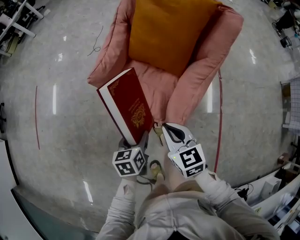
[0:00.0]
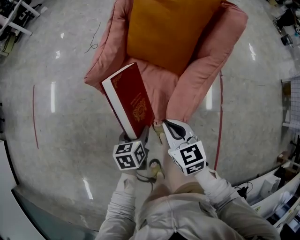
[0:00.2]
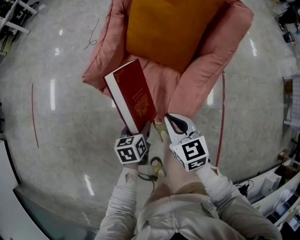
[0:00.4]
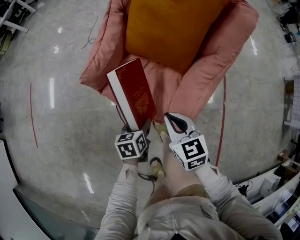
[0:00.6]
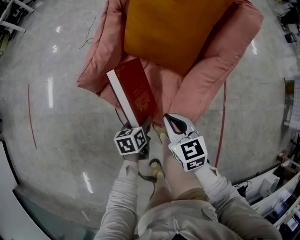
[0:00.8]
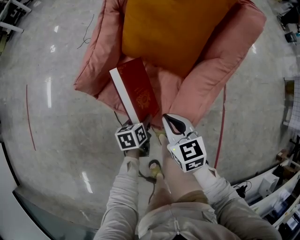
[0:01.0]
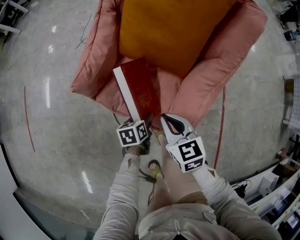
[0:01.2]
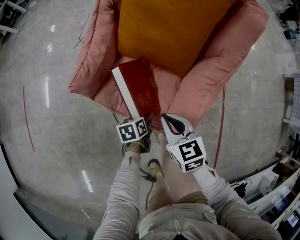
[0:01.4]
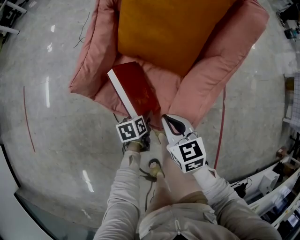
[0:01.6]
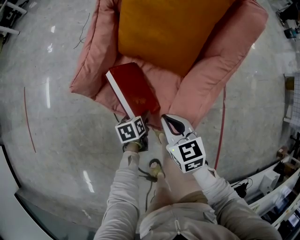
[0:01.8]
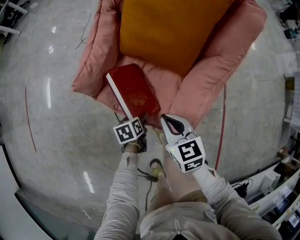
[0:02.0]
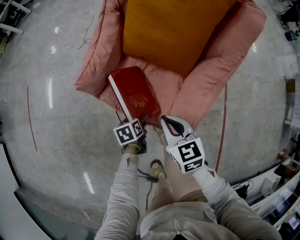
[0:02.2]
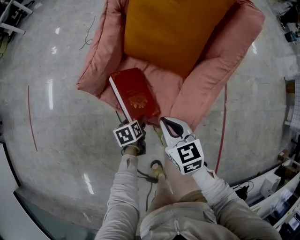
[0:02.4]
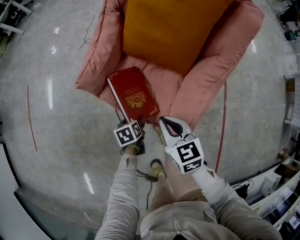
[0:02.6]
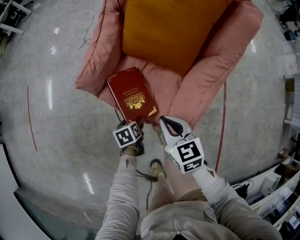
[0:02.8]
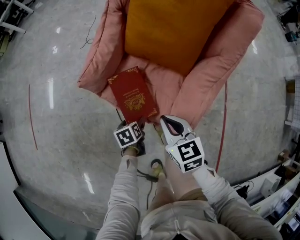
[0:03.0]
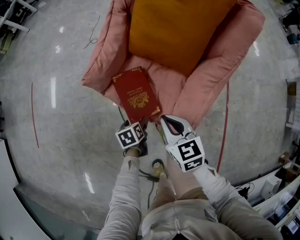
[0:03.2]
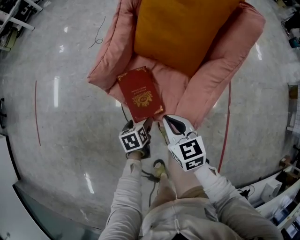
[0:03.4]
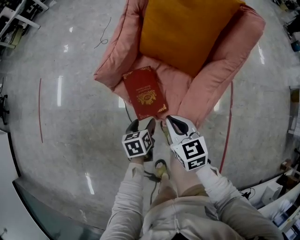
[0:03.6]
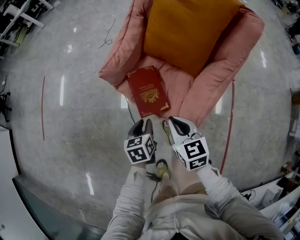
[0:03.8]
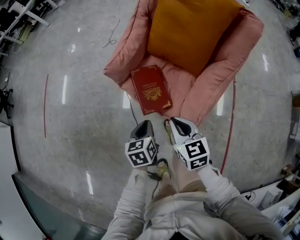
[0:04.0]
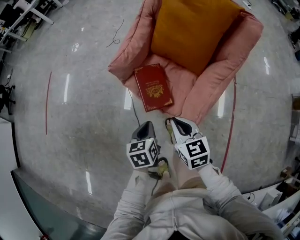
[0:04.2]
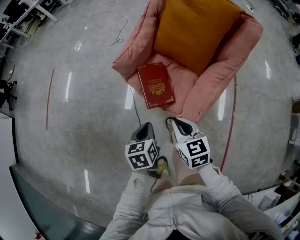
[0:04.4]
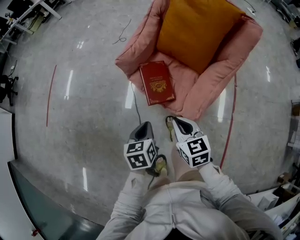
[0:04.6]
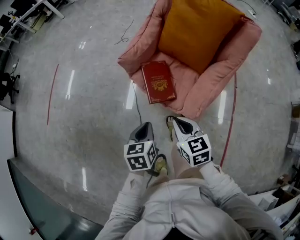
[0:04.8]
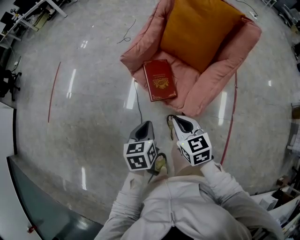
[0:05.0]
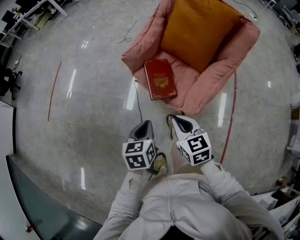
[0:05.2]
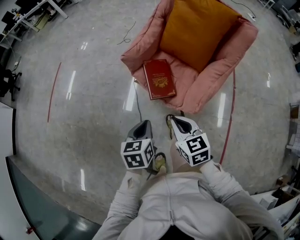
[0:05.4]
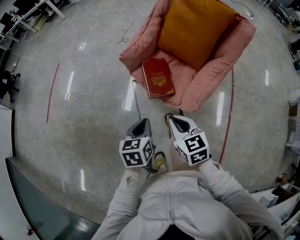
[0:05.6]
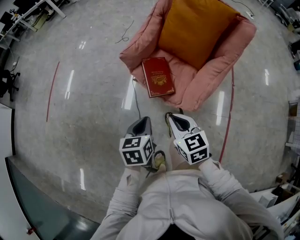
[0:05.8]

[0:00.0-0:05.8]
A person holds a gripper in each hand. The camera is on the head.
0:00.0 to 0:01.4: The right gripper heads downward and forward, covering approximately 15 cm, while the left gripper goes approximately 25 cm downward and forward, and turns by roughly 20 degrees.
0:01.4 to 0:02.8: The left gripper travels to the left by some 10 cm, and opens.
0:02.8 to 0:04.4: The right gripper shifts some 10 cm backward and upward. The left gripper is displaced upward and backward by some 25 cm, changes its angle by roughly 20 degrees, and closes its fingers.
0:04.4 to 0:05.8: The left gripper travels upward and backward by about 10 cm. The right gripper shifts some 5 cm backward.

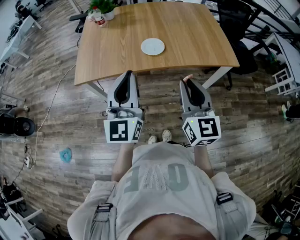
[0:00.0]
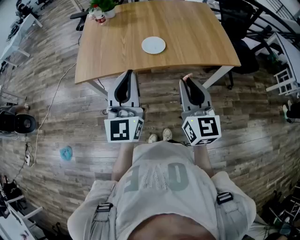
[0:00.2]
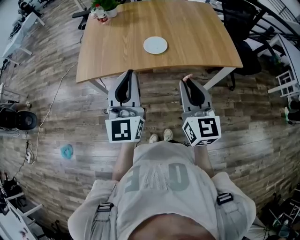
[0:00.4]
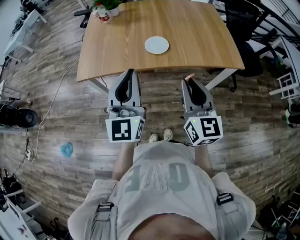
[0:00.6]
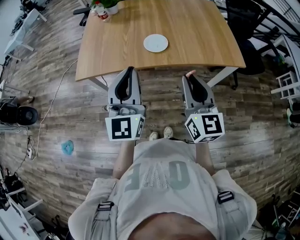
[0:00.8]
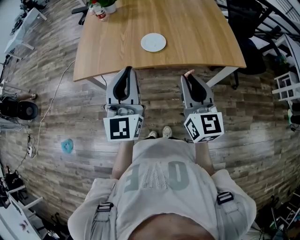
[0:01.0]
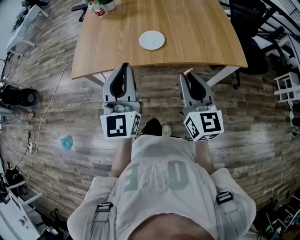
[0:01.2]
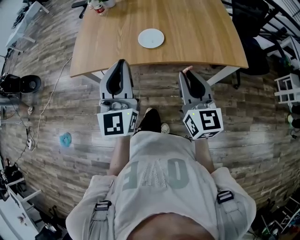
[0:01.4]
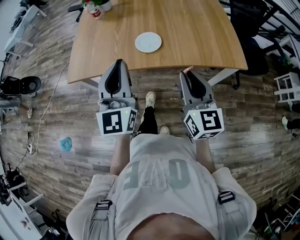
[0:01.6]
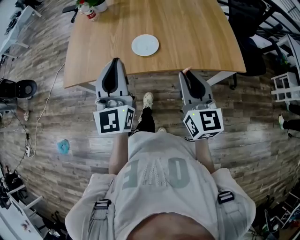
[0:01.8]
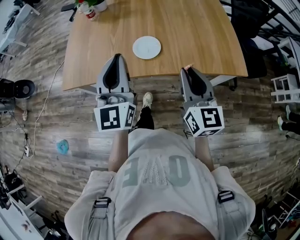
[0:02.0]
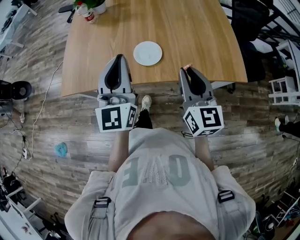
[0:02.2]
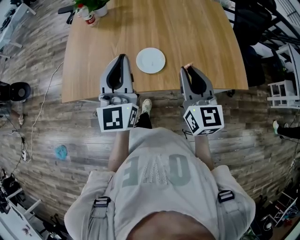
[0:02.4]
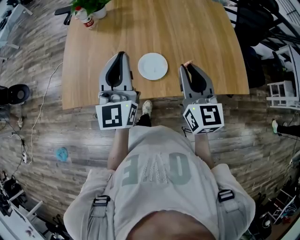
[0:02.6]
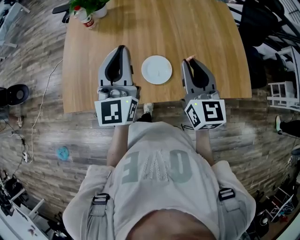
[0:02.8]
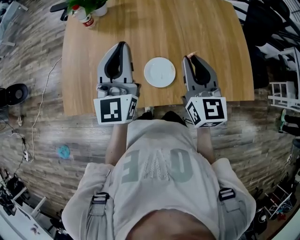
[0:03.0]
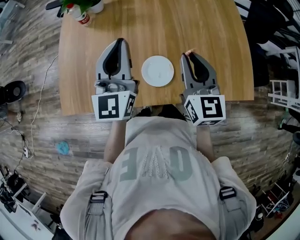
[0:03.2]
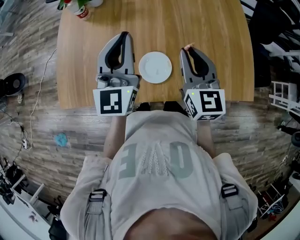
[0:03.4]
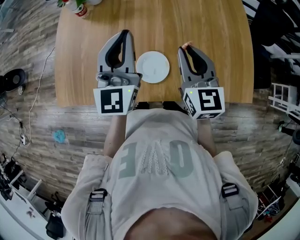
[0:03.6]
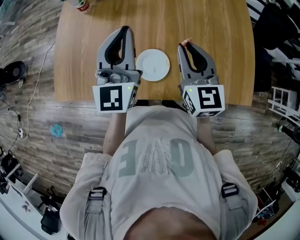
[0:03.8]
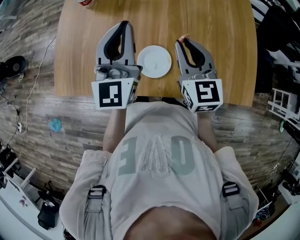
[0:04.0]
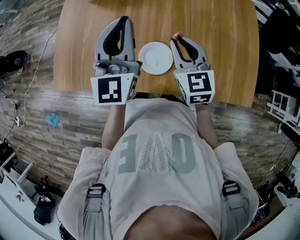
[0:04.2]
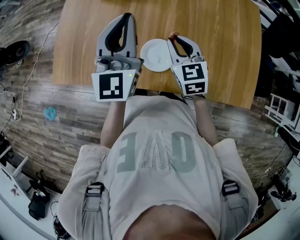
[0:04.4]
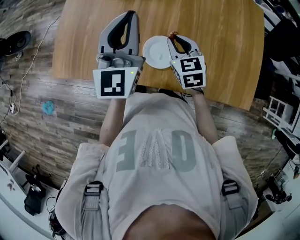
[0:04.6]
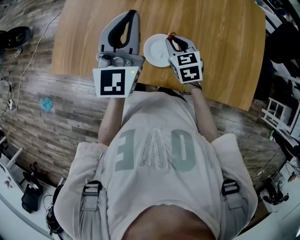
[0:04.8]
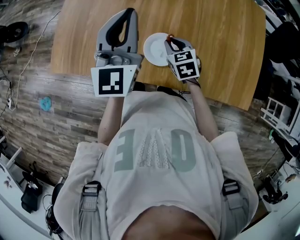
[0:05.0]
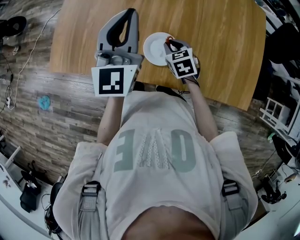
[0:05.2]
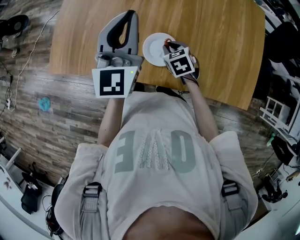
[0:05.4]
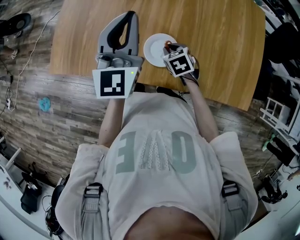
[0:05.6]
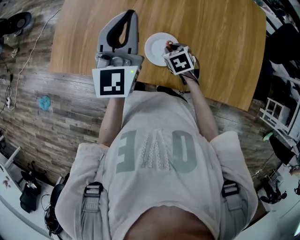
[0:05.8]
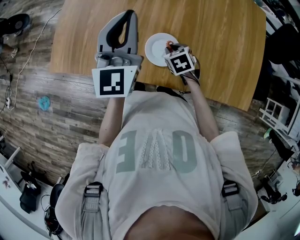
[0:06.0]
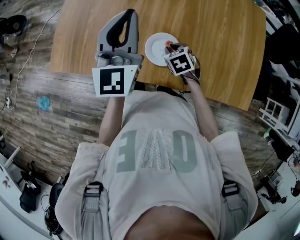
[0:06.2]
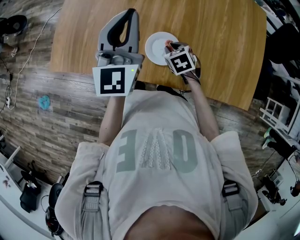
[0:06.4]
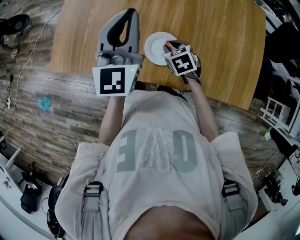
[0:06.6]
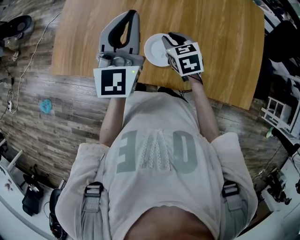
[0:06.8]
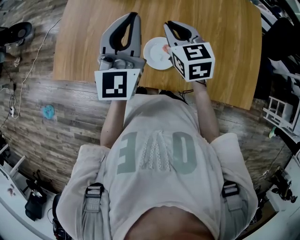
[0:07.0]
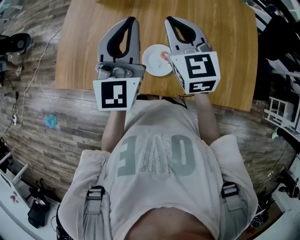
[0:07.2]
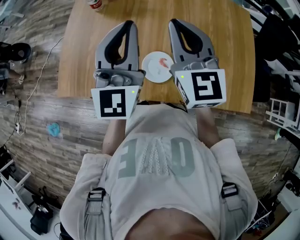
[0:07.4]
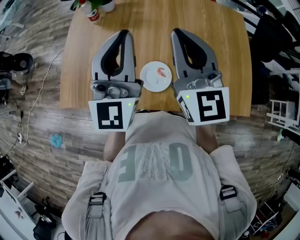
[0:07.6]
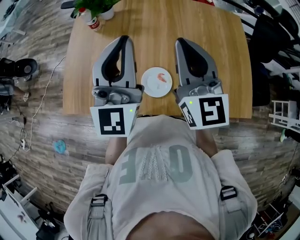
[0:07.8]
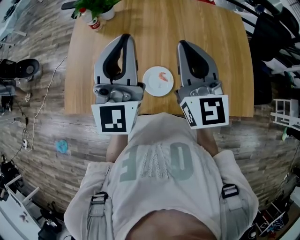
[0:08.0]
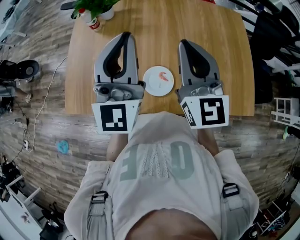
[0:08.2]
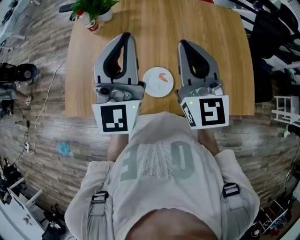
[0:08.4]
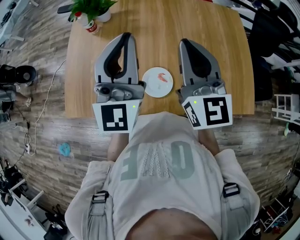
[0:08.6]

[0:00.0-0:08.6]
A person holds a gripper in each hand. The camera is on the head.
0:00.0 to 0:01.4: The left gripper shifts by roughly 5 cm; the right gripper heads forward and to the right, covering about 10 cm.
0:01.4 to 0:02.8: The two grippers go about 30 cm forward.
0:02.8 to 0:04.4: The left gripper goes about 5 cm forward, while the right gripper travels downward and forward by approximately 15 cm, and swivels roughly 30 degrees.
0:04.4 to 0:05.8: The right gripper goes approximately 15 cm downward, and angles its fingers downward, by some 30 degrees.
0:05.8 to 0:07.2: The right gripper is displaced upward by about 30 cm, and tips its fingers upward by about 50 degrees, while the left gripper heads upward, covering about 5 cm.
0:07.2 to 0:08.6: The left gripper travels upward by roughly 5 cm. The right gripper heads upward and to the right, covering about 10 cm, and swivels roughly 20 degrees.

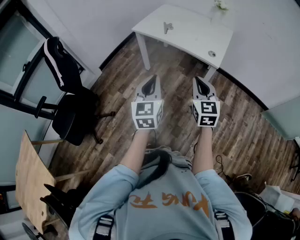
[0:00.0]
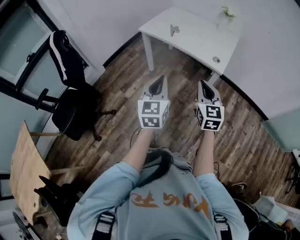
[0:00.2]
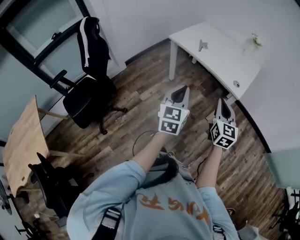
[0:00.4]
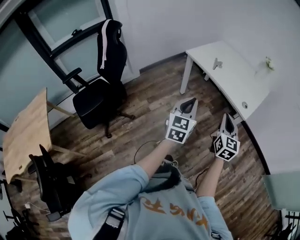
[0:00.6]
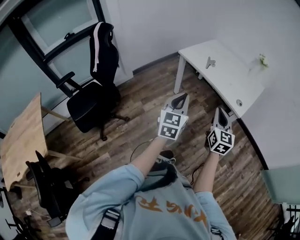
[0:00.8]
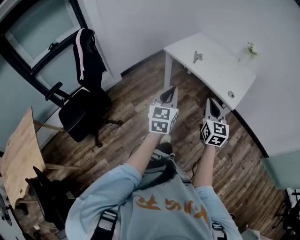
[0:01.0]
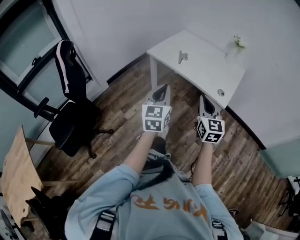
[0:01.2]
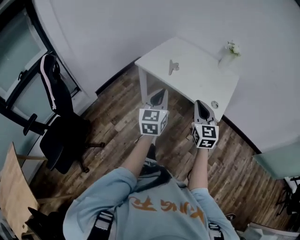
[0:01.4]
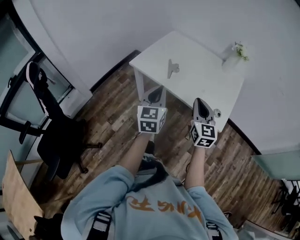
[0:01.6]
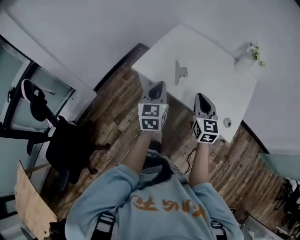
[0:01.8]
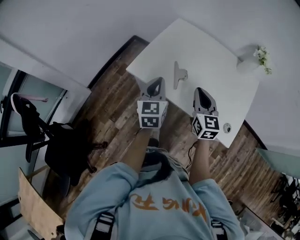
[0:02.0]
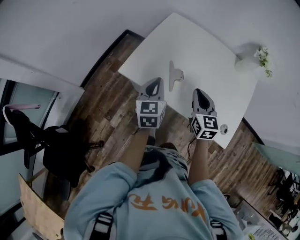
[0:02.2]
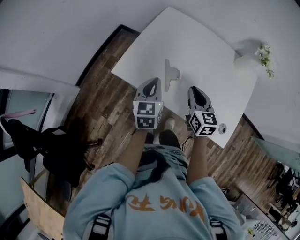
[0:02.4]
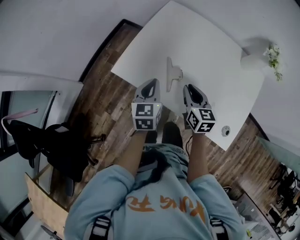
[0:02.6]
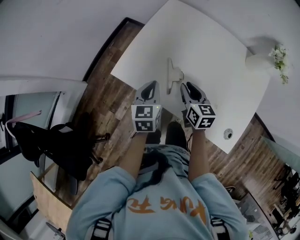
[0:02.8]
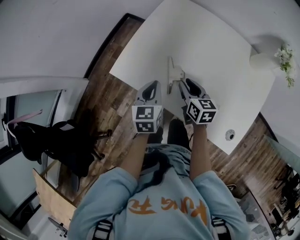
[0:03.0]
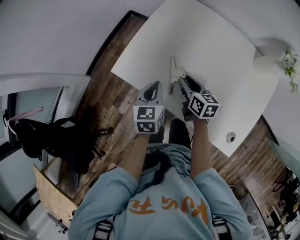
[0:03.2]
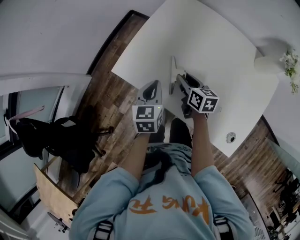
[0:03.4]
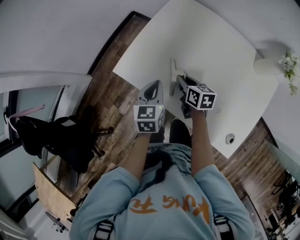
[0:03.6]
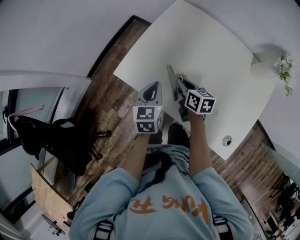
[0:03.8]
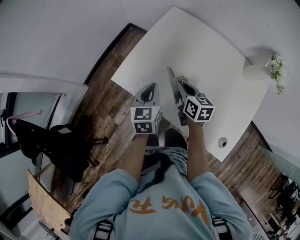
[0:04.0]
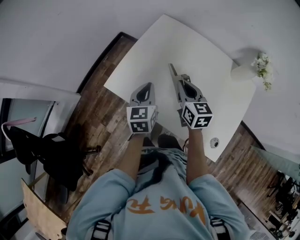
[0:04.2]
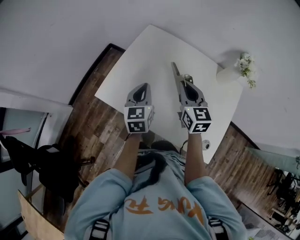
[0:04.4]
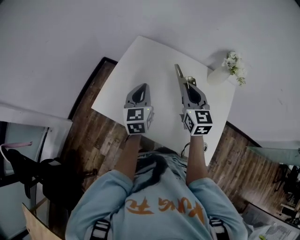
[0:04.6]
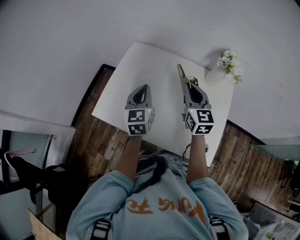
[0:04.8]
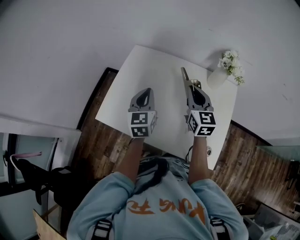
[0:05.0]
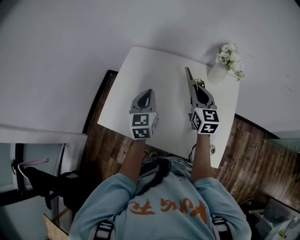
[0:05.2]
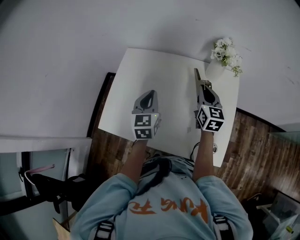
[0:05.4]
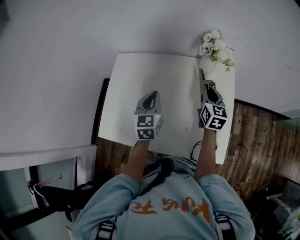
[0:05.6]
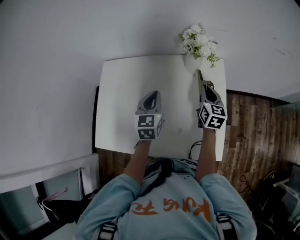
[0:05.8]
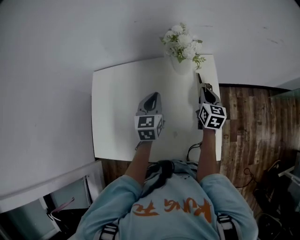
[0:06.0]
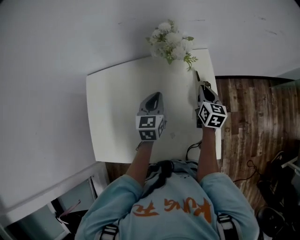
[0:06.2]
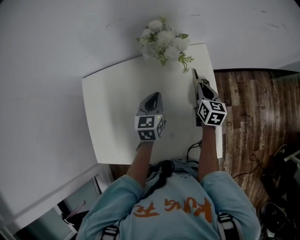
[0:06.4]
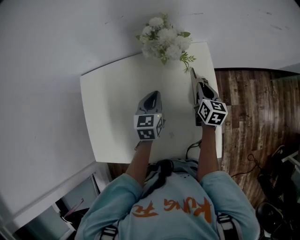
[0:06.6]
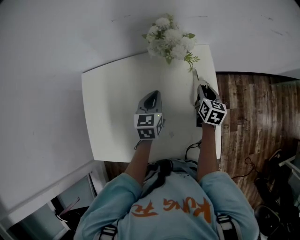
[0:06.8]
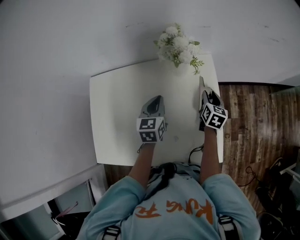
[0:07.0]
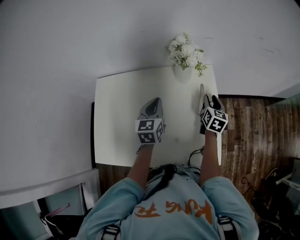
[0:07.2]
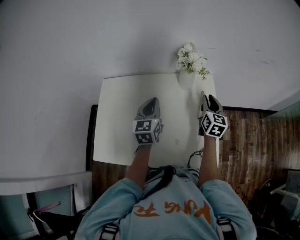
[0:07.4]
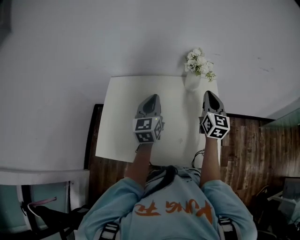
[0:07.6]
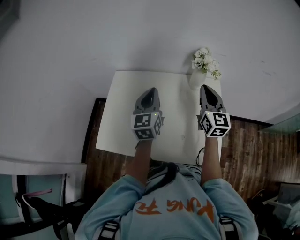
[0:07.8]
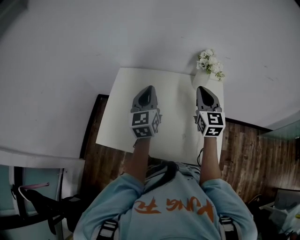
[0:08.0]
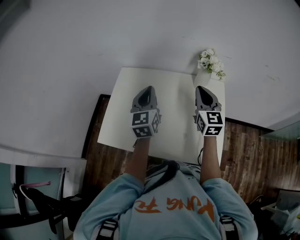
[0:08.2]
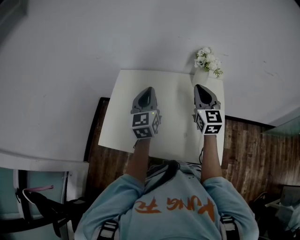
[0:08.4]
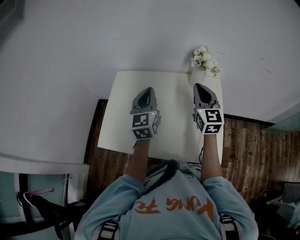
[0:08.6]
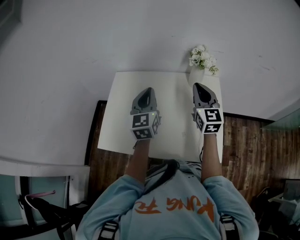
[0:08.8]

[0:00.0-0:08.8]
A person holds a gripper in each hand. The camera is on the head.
0:00.0 to 0:01.4: Both grippers move forward, roughly 20 cm.
0:01.4 to 0:03.0: The two grippers travel together, forward, roughly 40 cm. Both grippers travel together downward, roughly 20 cm. The right gripper changes its angle by some 40 degrees, and opens; the left gripper changes its angle by approximately 30 degrees.
0:03.0 to 0:04.4: The right gripper is displaced upward and to the right by some 20 cm, turns by about 30 degrees, and closes up, while the left gripper heads upward and to the right, covering some 10 cm.
0:04.4 to 0:05.8: The right gripper ends up some 35 cm from where it was, and rotates approximately 40 degrees; the left gripper ends up approximately 25 cm from where it was, and rotates roughly 30 degrees.
0:05.8 to 0:07.4: The right gripper travels downward and back again, approximately 10 cm each way. The left gripper goes downward and returns, some 10 cm each way.
0:07.4 to 0:08.8: The left gripper is displaced upward, to the left and backward by about 15 cm. The right gripper is displaced to the left and upward by about 20 cm, rotates about 30 degrees, and closes.
